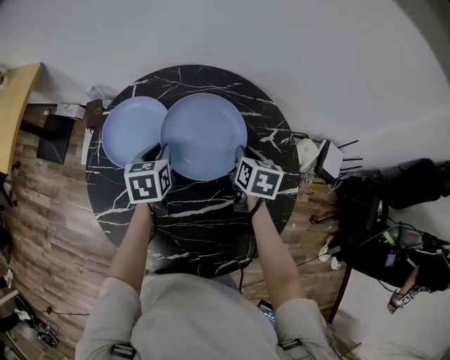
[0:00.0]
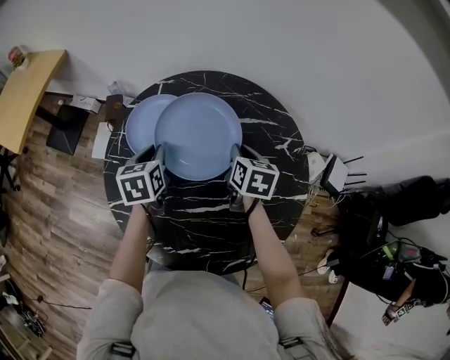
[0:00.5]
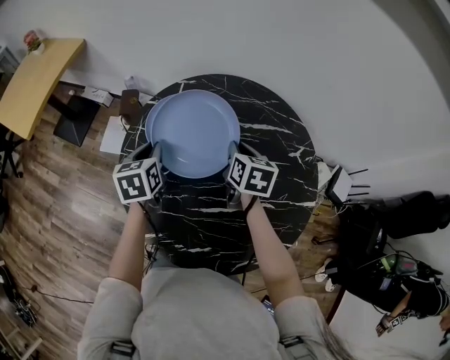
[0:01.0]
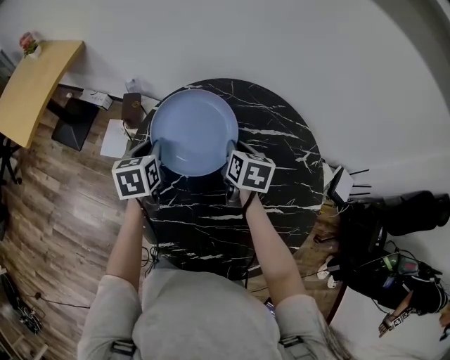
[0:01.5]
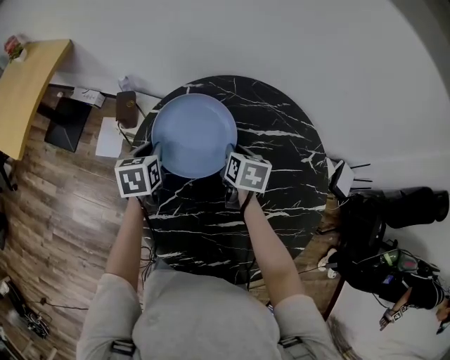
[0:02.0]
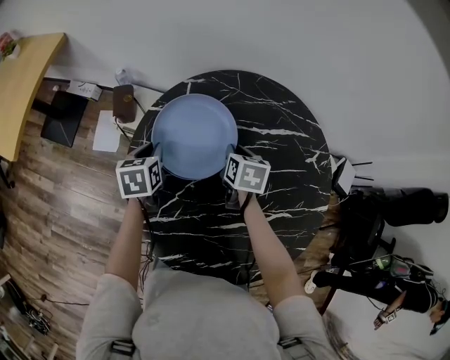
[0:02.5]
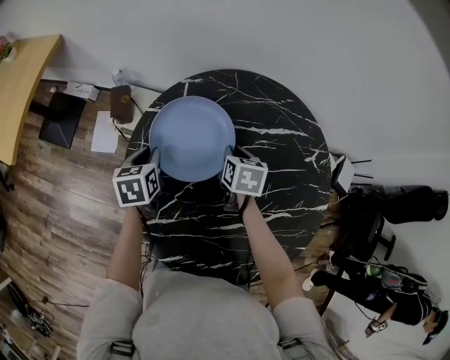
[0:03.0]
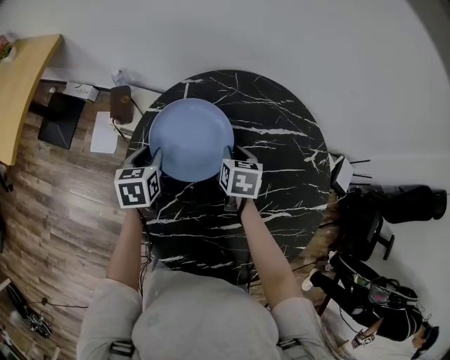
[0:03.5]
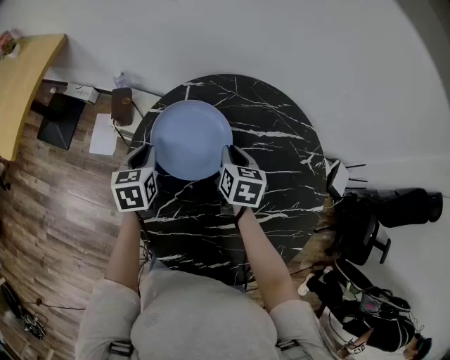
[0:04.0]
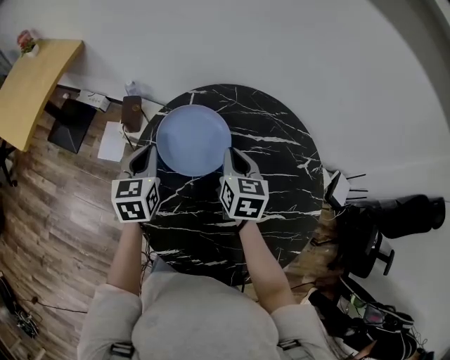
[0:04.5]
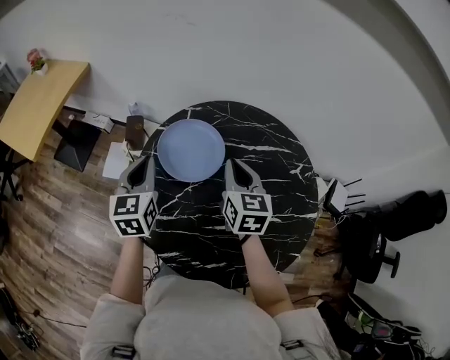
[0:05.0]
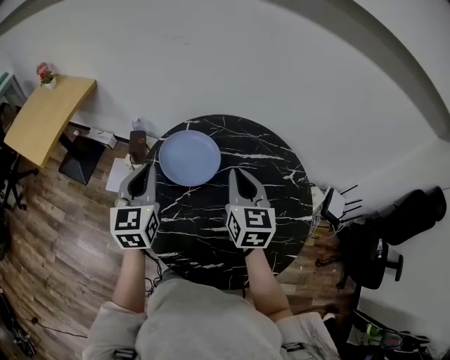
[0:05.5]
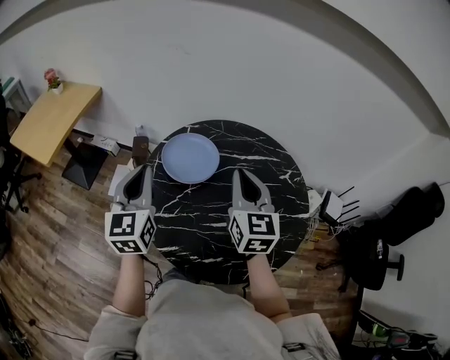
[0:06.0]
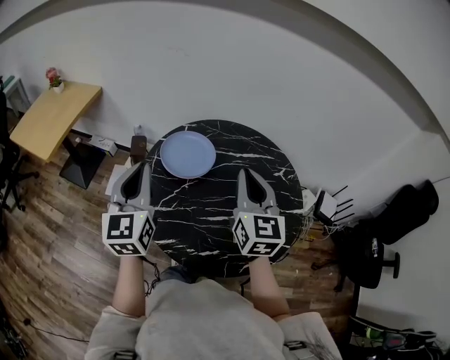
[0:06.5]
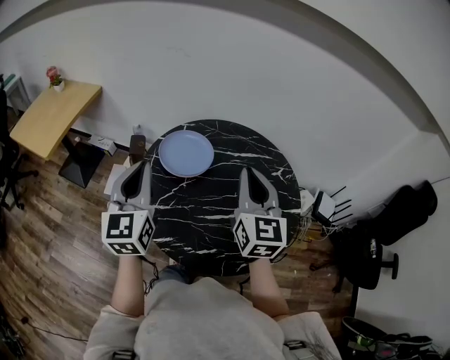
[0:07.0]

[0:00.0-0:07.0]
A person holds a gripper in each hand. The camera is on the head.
0:00.0 to 0:02.0: Both grippers move to the left, approximately 20 cm.
0:02.0 to 0:03.5: There are only small adjustments of the grippers.
0:03.5 to 0:05.0: The grippers both shift upward and backward by some 20 cm. The left gripper turns by about 30 degrees, and closes up, while the right gripper tips its fingers upward by roughly 30 degrees.
0:05.0 to 0:07.0: The grippers both shift backward and upward by roughly 25 cm. The right gripper rotates approximately 20 degrees, while the left gripper changes its angle by approximately 20 degrees.

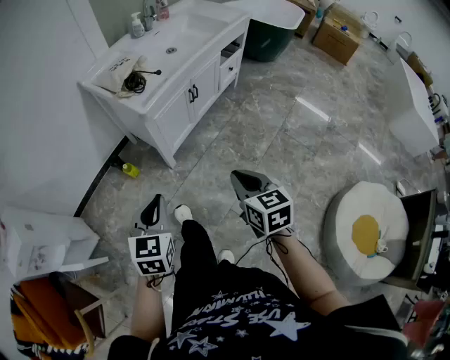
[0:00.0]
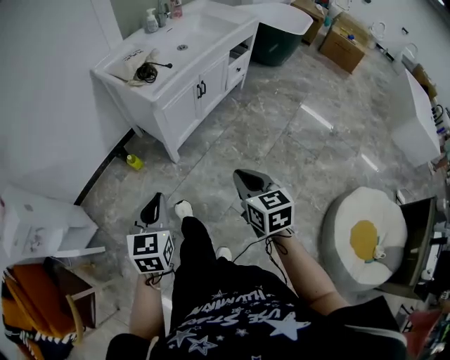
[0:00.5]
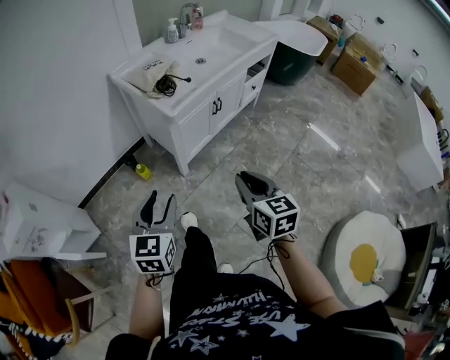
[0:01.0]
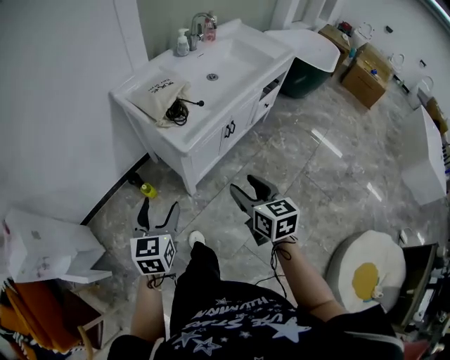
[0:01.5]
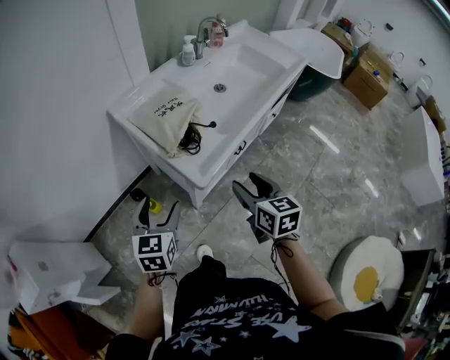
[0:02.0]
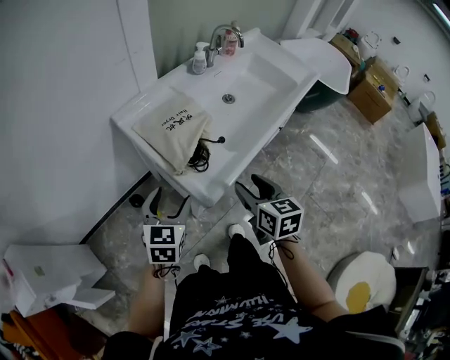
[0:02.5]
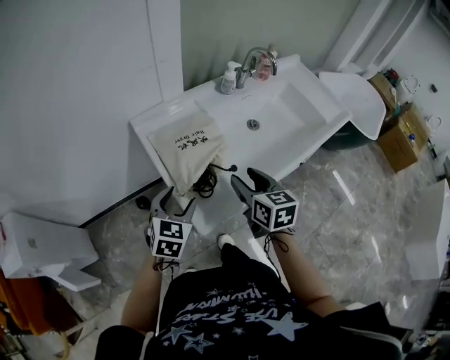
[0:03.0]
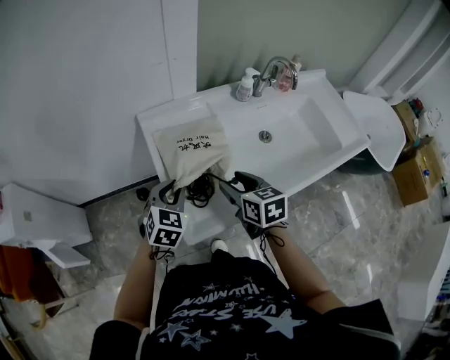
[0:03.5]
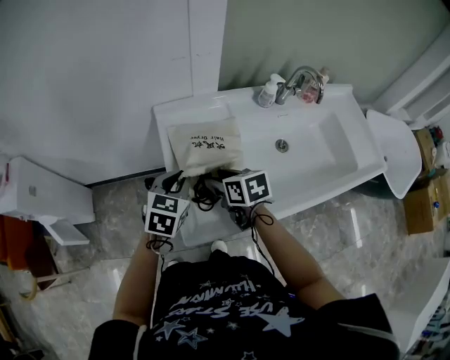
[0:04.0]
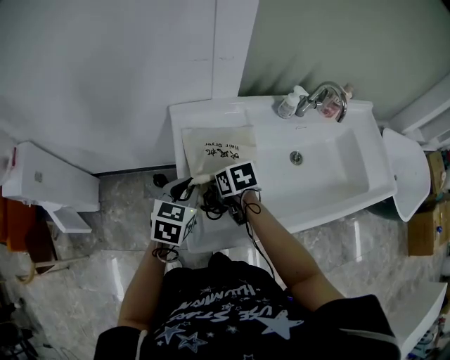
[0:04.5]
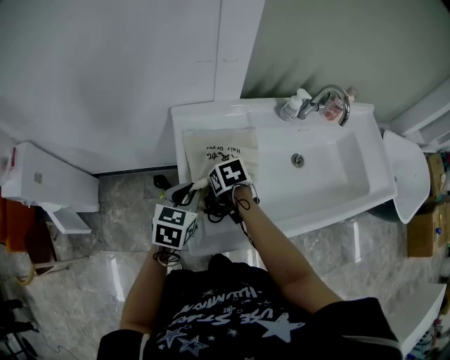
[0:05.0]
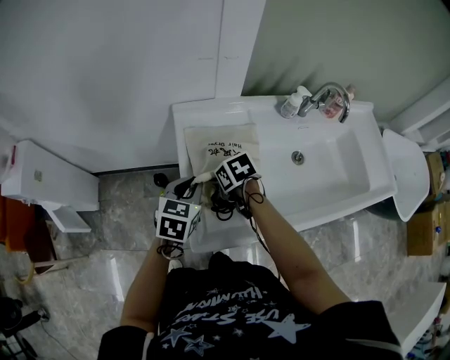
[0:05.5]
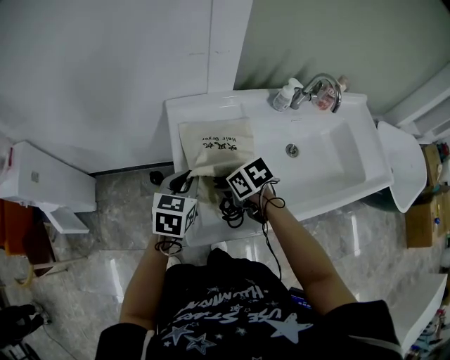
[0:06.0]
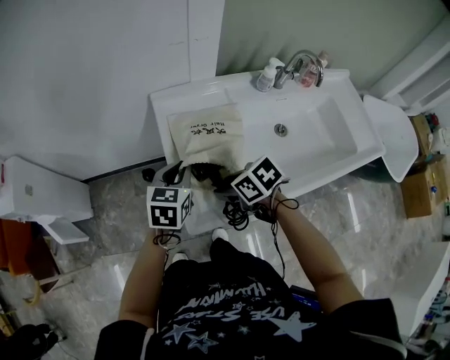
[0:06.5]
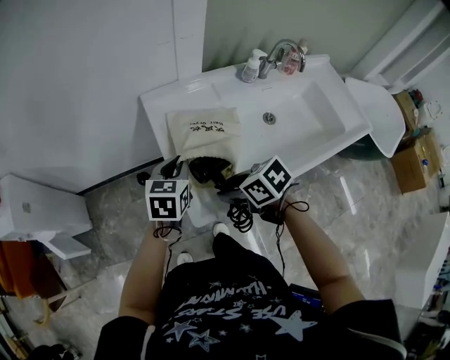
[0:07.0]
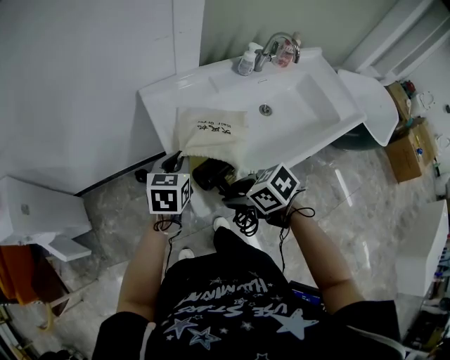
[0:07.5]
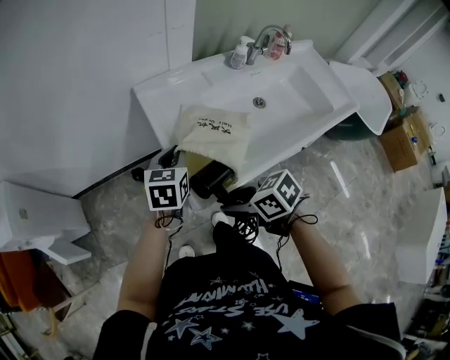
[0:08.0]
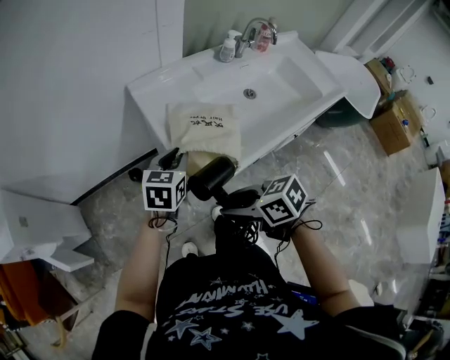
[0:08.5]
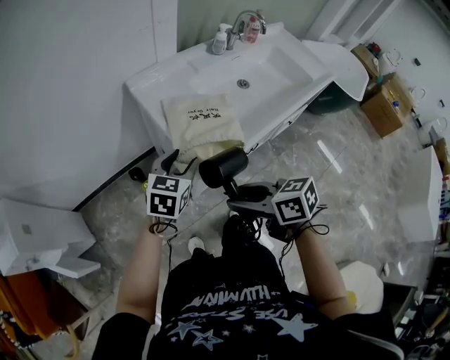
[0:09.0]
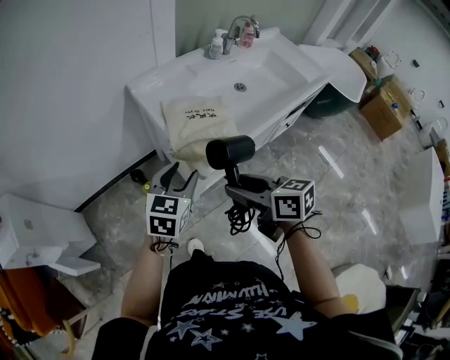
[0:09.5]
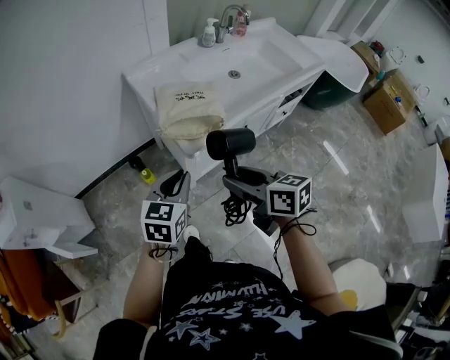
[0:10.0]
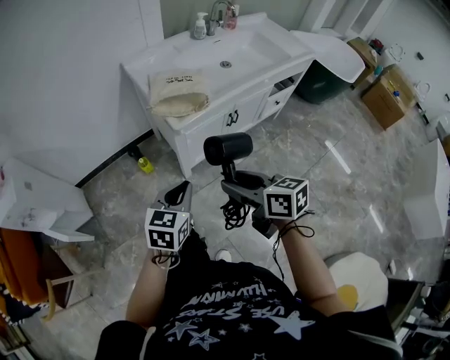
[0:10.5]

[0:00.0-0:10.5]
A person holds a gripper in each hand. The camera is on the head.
0:00.0 to 0:02.0: The right gripper moves forward, about 35 cm, and opens, while the left gripper travels forward and to the left by roughly 35 cm, and opens its fingers.
0:02.0 to 0:04.0: The left gripper changes place by some 25 cm, rotates about 20 degrees, and closes its fingers, while the right gripper shifts by about 30 cm, and rotates about 50 degrees.
0:04.0 to 0:06.5: The right gripper shifts roughly 5 cm backward, and changes its angle by approximately 30 degrees.
0:06.5 to 0:08.5: The right gripper goes roughly 20 cm backward and to the left. Meanwhile the left gripper travels backward by about 5 cm.
0:08.5 to 0:10.5: The left gripper goes roughly 35 cm backward, and opens and closes again; the right gripper goes about 20 cm backward, and rotates about 30 degrees.

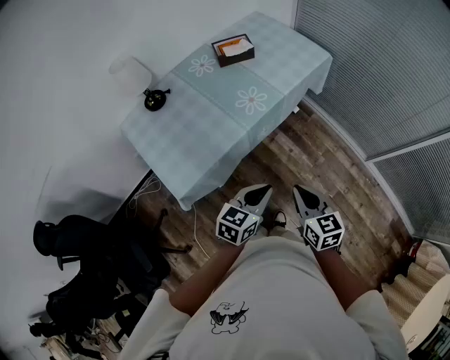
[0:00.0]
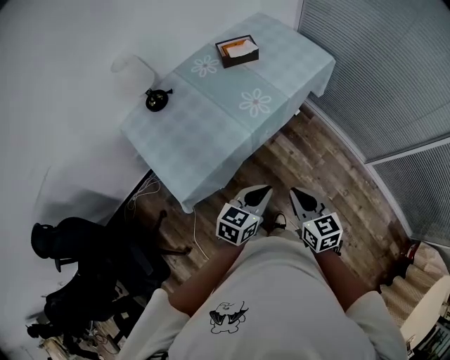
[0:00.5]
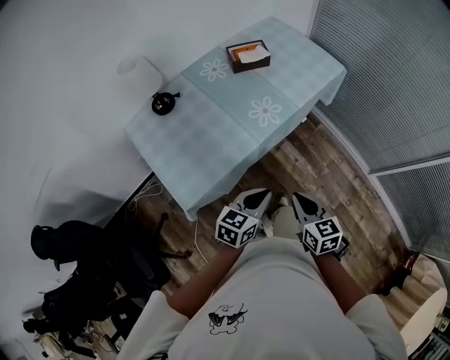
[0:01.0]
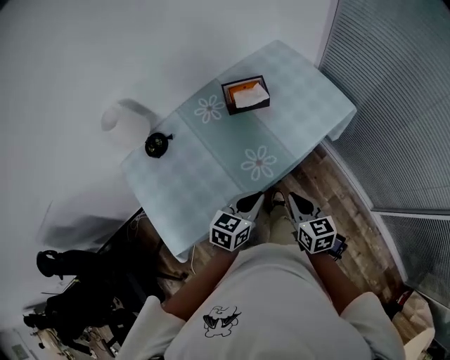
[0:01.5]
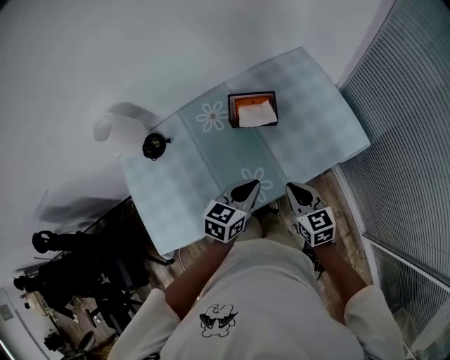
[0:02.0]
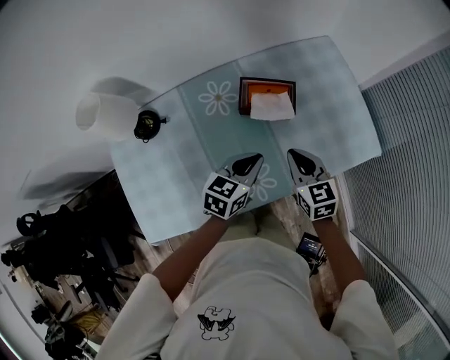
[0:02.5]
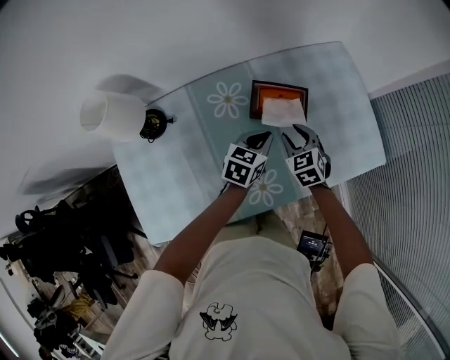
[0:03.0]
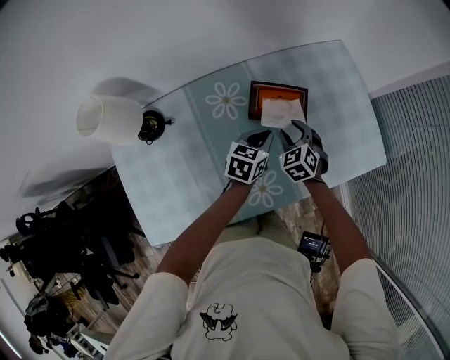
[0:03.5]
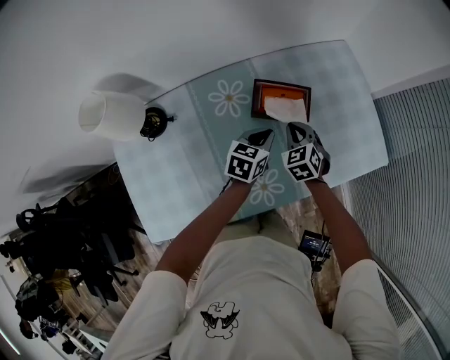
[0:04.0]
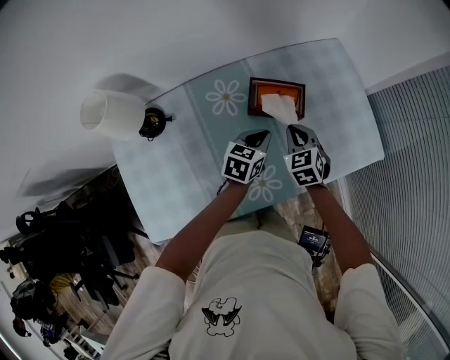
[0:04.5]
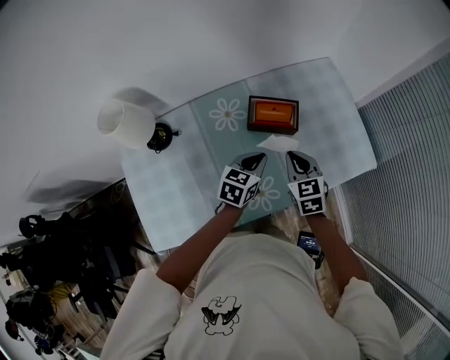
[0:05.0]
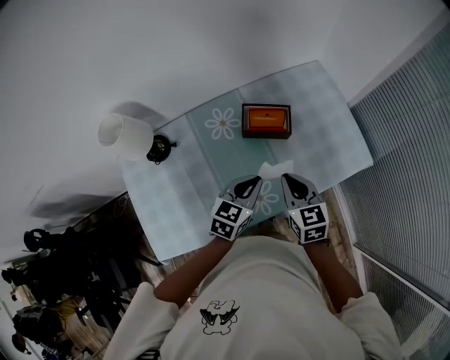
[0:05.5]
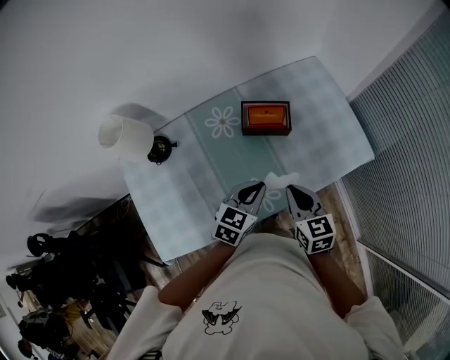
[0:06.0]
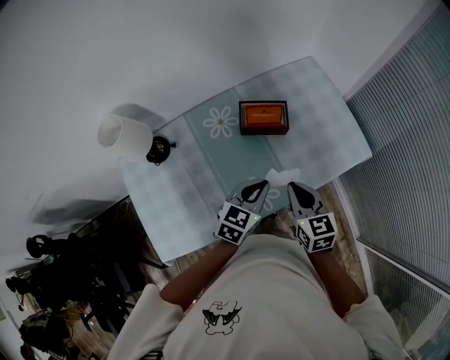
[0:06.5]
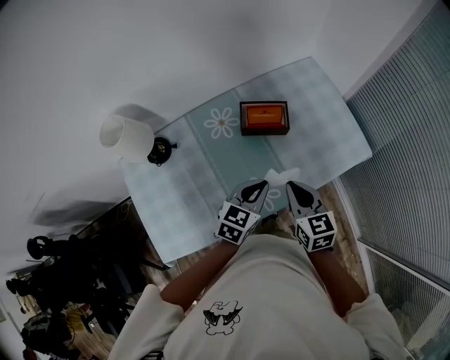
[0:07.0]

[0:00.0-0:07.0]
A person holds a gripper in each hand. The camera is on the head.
0:00.0 to 0:02.0: The two grippers travel together, forward, some 50 cm. The right gripper swivels roughly 20 degrees. The left gripper swivels some 20 degrees.
0:02.0 to 0:03.5: The left gripper is displaced forward and downward by roughly 25 cm, while the right gripper travels forward, downward and to the left by roughly 30 cm, swivels some 40 degrees, and opens.
0:03.5 to 0:05.0: The right gripper shifts approximately 15 cm upward and backward, changes its angle by some 30 degrees, and closes. Meanwhile the left gripper travels backward and upward by approximately 10 cm.
0:05.0 to 0:07.0: The grippers both shift backward and upward by about 10 cm.

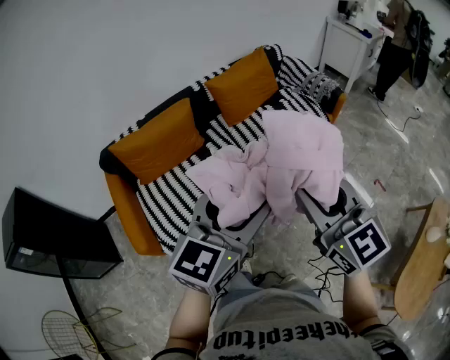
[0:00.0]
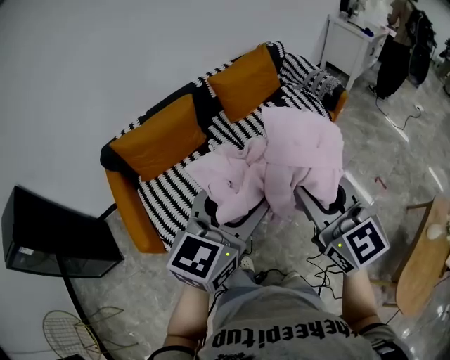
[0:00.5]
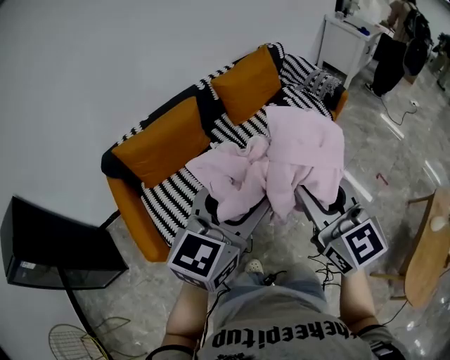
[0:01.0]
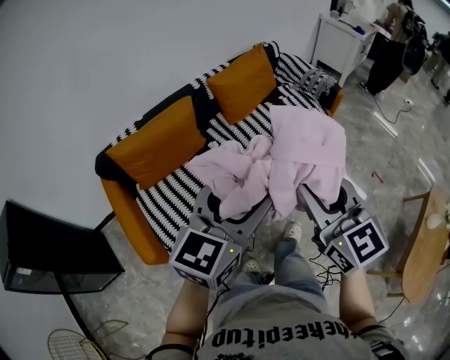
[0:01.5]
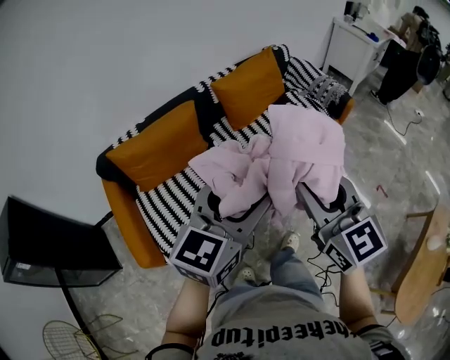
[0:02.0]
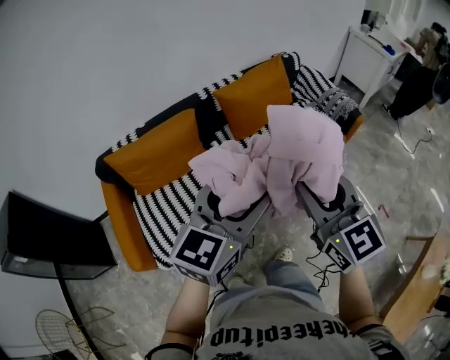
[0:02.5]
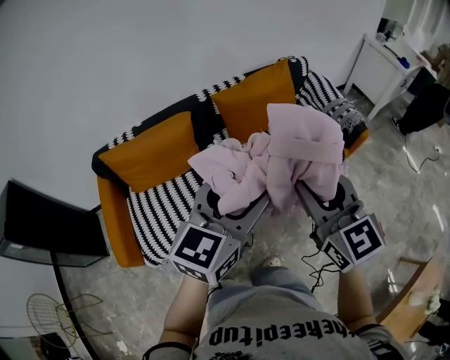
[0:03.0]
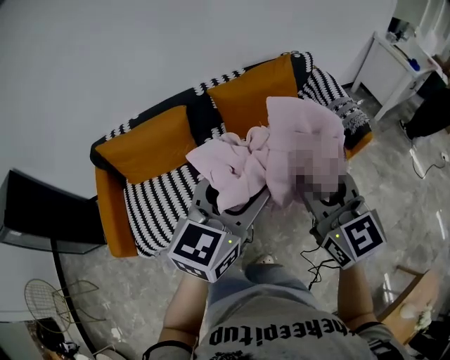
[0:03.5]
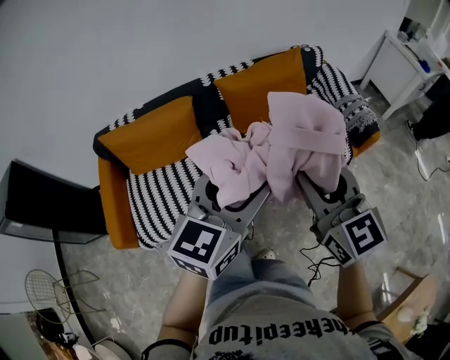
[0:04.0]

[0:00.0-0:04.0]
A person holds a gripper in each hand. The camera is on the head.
0:00.0 to 0:02.0: Both grippers travel together forward and to the left, approximately 10 cm.
0:02.0 to 0:04.0: Both grippers travel together forward and to the right, roughly 25 cm.
